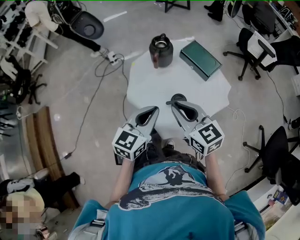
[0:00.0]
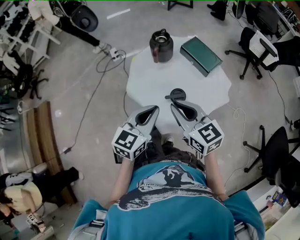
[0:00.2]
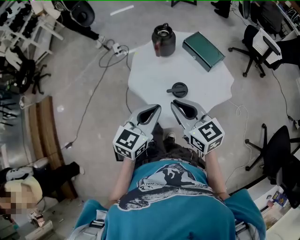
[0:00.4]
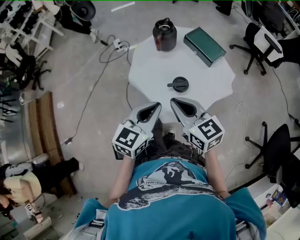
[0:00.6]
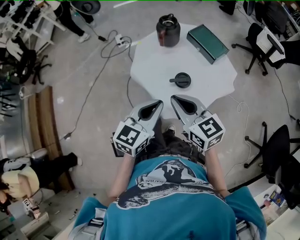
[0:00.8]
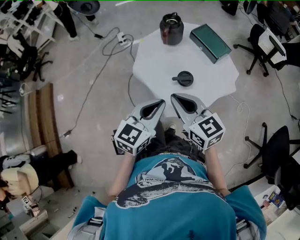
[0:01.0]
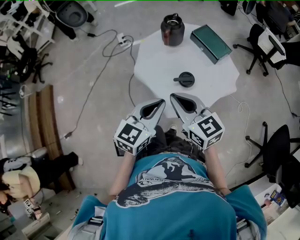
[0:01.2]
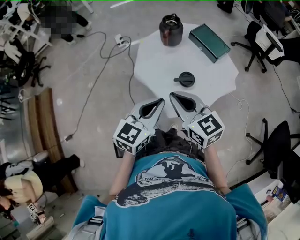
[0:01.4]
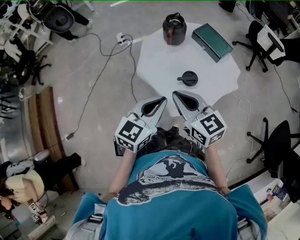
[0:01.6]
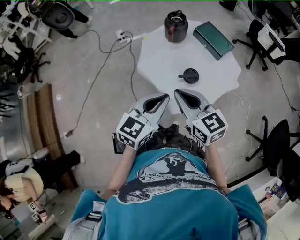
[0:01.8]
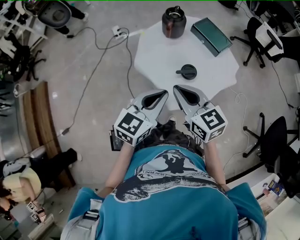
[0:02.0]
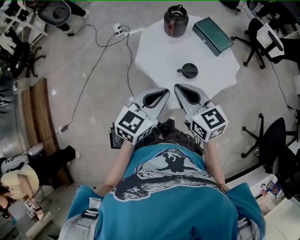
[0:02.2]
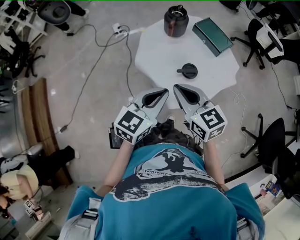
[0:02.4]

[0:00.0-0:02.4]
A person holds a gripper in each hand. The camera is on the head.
0:00.0 to 0:01.2: Both grippers move backward, roughly 10 cm.
0:01.2 to 0:02.4: The grippers make only small movements.

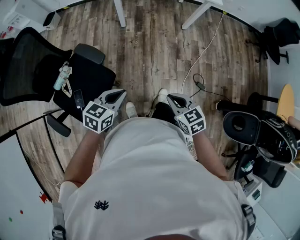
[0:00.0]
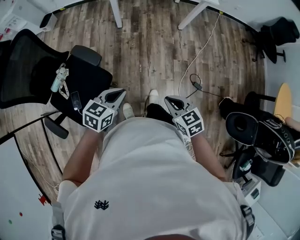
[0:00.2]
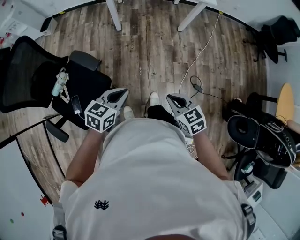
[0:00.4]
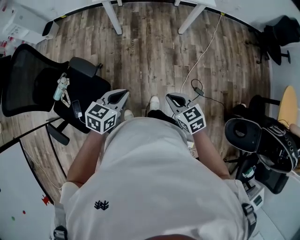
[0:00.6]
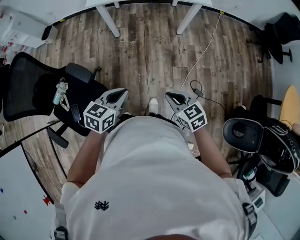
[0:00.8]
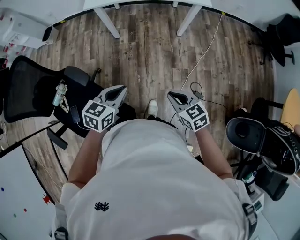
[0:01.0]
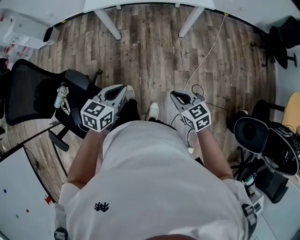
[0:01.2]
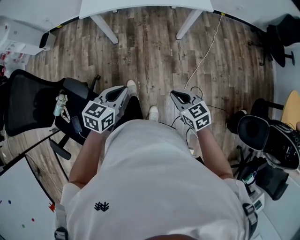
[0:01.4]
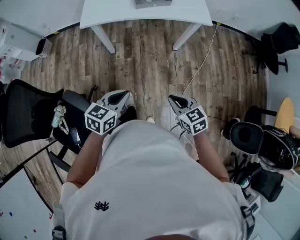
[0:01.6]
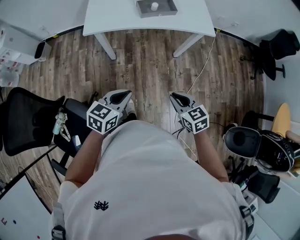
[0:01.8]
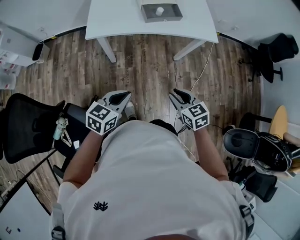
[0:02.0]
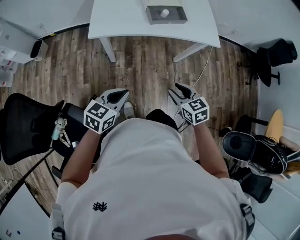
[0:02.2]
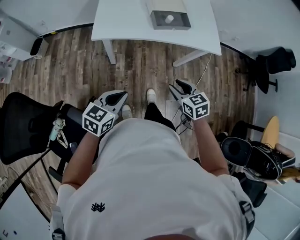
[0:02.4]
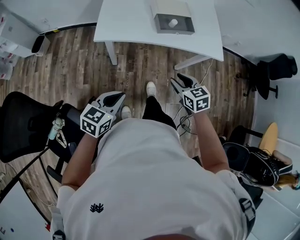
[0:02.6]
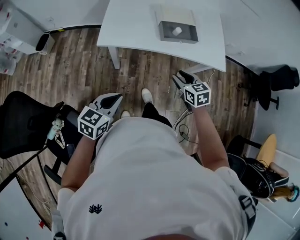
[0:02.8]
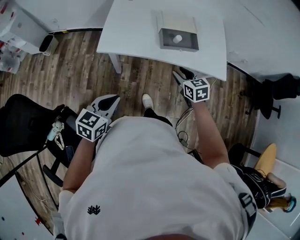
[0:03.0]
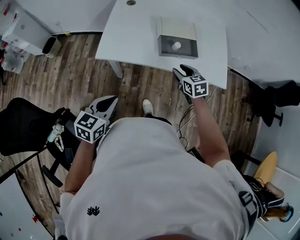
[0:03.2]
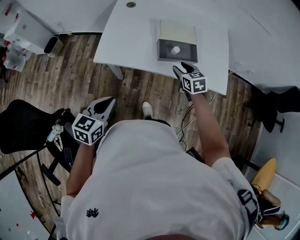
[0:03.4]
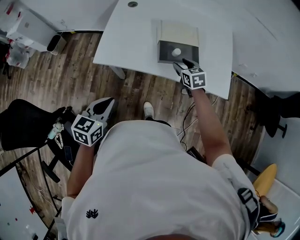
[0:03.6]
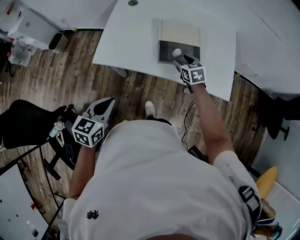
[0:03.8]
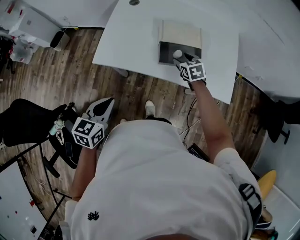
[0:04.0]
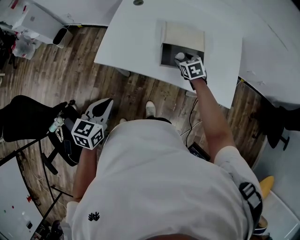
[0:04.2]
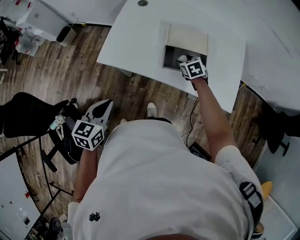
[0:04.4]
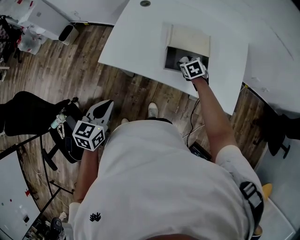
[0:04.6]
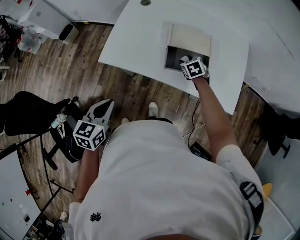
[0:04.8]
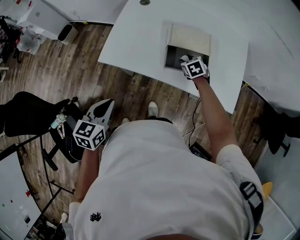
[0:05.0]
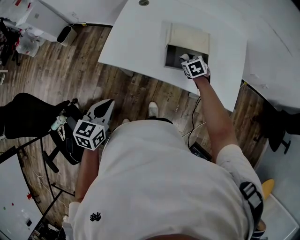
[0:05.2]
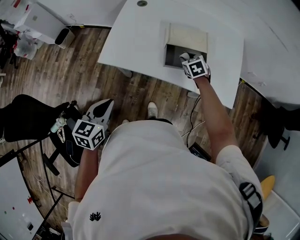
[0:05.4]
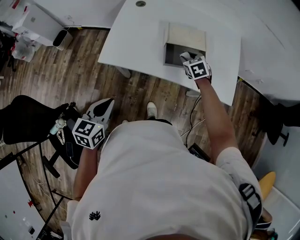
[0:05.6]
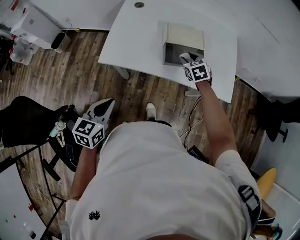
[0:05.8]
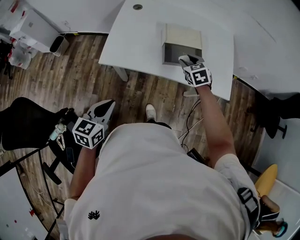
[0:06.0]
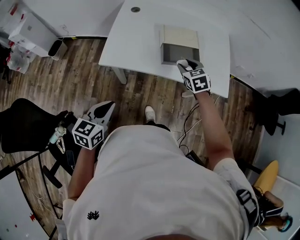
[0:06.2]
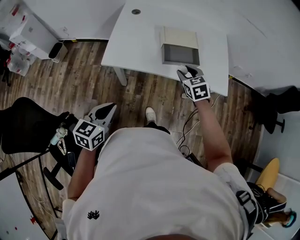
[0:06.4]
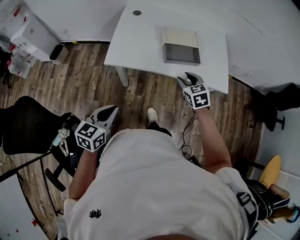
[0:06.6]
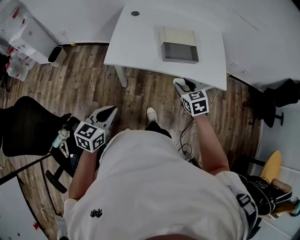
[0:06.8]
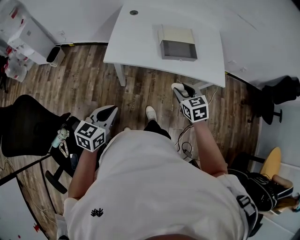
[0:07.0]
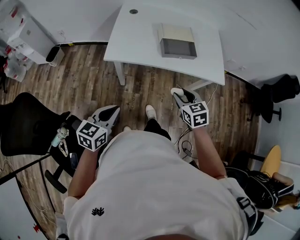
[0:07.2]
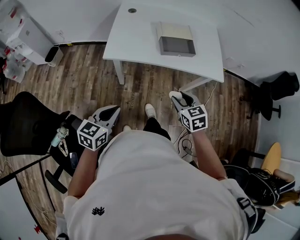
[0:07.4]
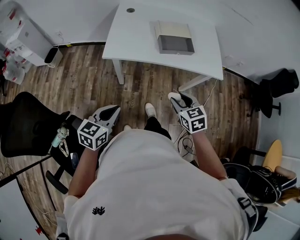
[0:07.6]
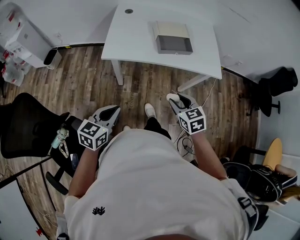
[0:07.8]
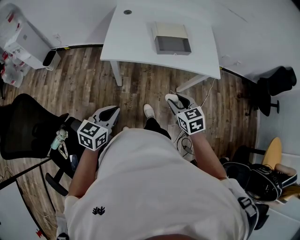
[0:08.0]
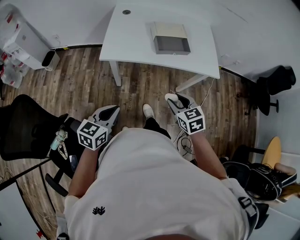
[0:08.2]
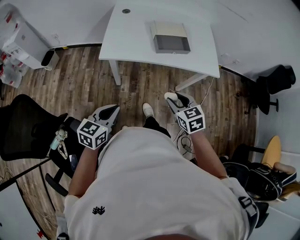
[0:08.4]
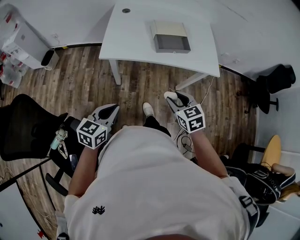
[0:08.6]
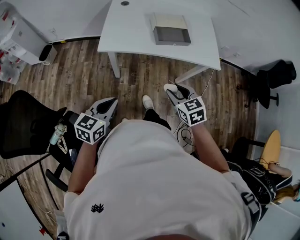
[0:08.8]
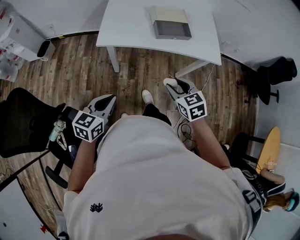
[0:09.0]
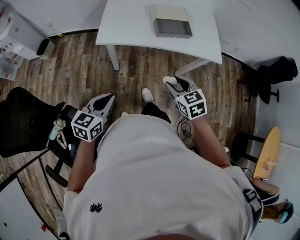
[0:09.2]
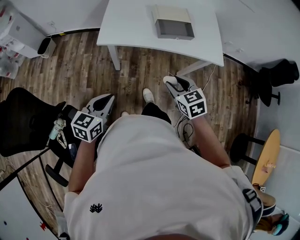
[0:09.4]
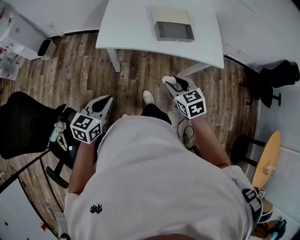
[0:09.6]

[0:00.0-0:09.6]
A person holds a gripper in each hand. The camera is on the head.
0:00.0 to 0:01.6: Both grippers move forward and to the right, roughly 25 cm.
0:01.6 to 0:03.2: The left gripper heads forward and to the left, covering some 25 cm. Meanwhile the right gripper travels forward by approximately 50 cm, and opens its fingers.
0:03.2 to 0:04.8: The right gripper moves forward and downward, some 20 cm, and swivels some 20 degrees. Meanwhile the left gripper goes about 5 cm forward, and swivels about 20 degrees.
0:04.8 to 0:06.4: The right gripper goes approximately 20 cm backward and upward; the left gripper goes roughly 5 cm backward.
0:06.4 to 0:08.0: The right gripper moves backward, about 25 cm. Meanwhile the left gripper shifts approximately 10 cm backward.
0:08.0 to 0:09.6: The grippers make only small movements.

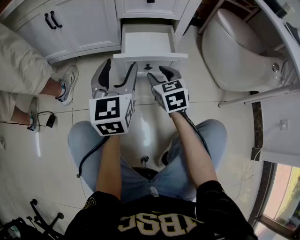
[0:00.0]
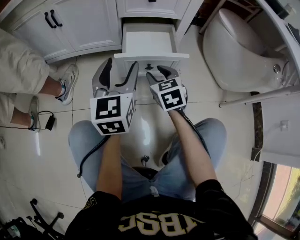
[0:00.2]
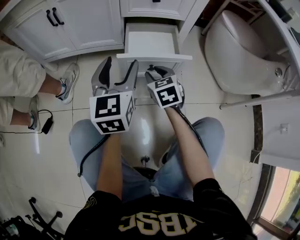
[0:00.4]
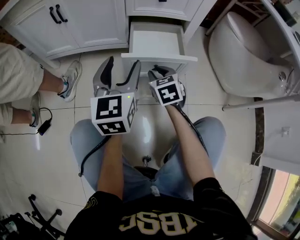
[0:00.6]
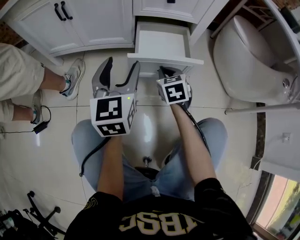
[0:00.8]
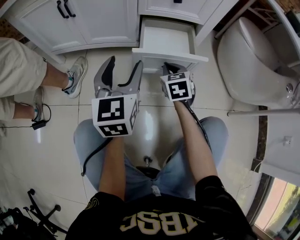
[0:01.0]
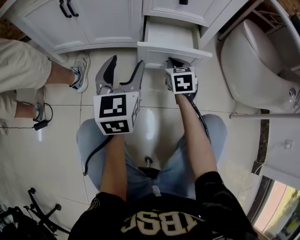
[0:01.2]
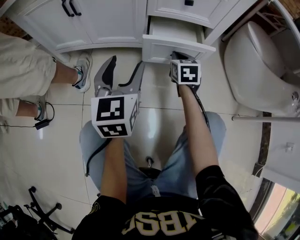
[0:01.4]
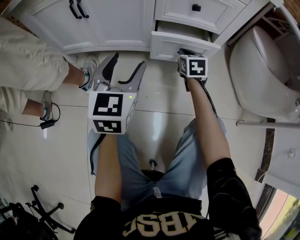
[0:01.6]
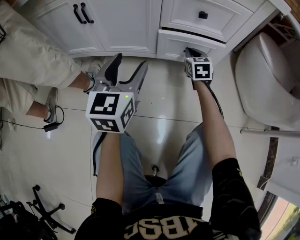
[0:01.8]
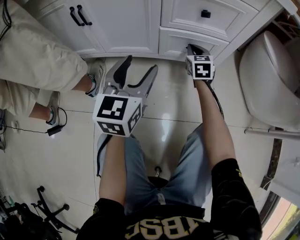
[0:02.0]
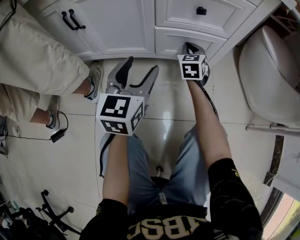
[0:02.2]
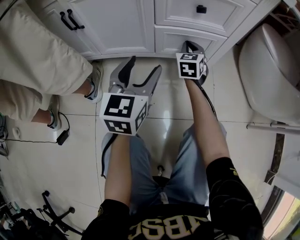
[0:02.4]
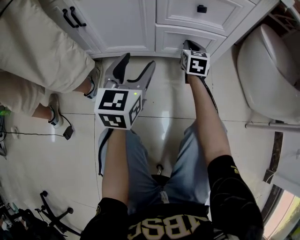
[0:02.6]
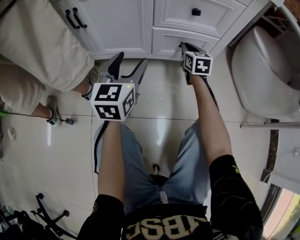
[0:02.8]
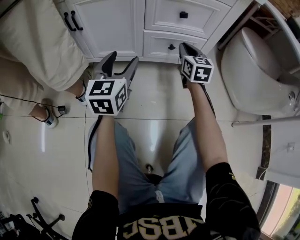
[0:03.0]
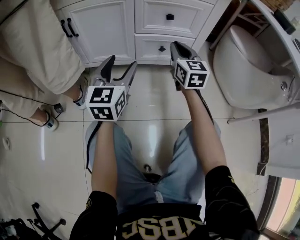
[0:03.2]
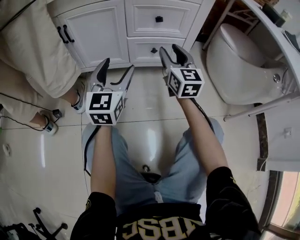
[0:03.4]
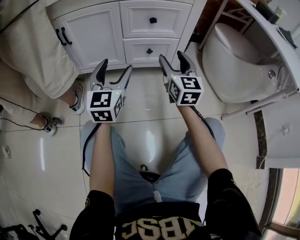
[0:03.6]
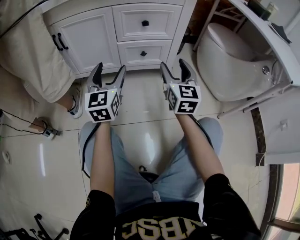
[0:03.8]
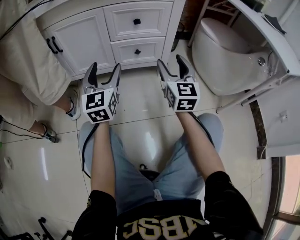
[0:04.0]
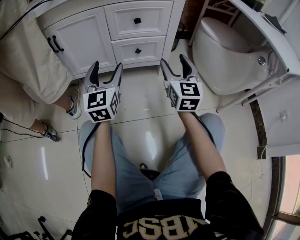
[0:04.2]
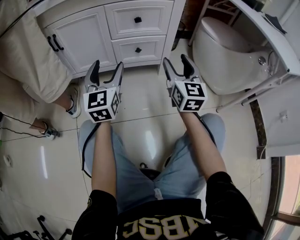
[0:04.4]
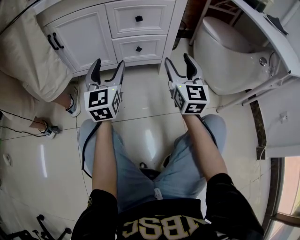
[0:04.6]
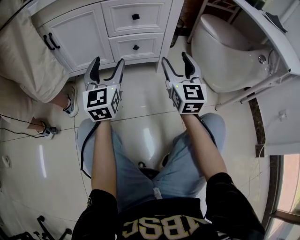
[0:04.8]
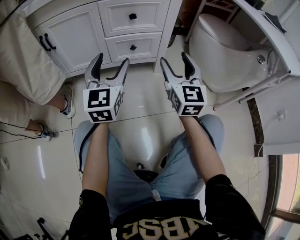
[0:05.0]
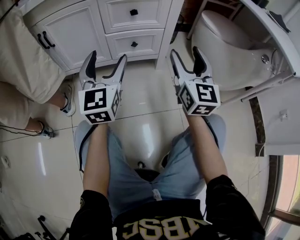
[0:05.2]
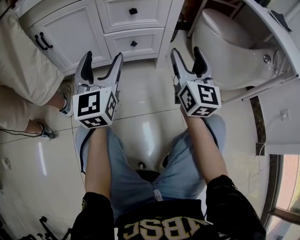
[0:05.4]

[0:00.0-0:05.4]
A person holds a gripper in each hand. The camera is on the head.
0:00.0 to 0:01.4: The right gripper shifts roughly 15 cm forward, and closes its fingers, while the left gripper heads to the left and forward, covering some 10 cm.
0:01.4 to 0:02.8: The right gripper shifts roughly 10 cm forward. Meanwhile the left gripper moves forward, roughly 5 cm.
0:02.8 to 0:04.0: The left gripper moves backward, upward and to the right, some 10 cm. The right gripper heads backward and upward, covering roughly 30 cm, rotates about 30 degrees, and opens its fingers.
0:04.0 to 0:05.4: The right gripper changes place by some 5 cm.

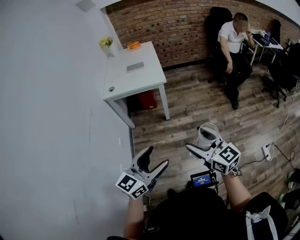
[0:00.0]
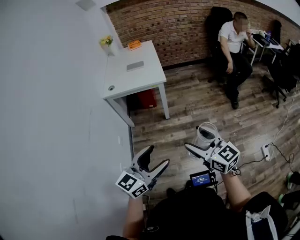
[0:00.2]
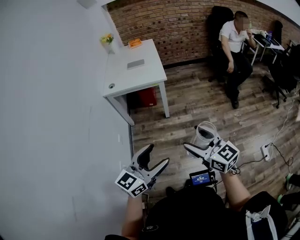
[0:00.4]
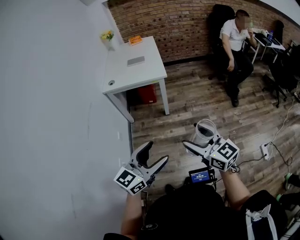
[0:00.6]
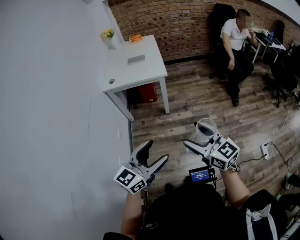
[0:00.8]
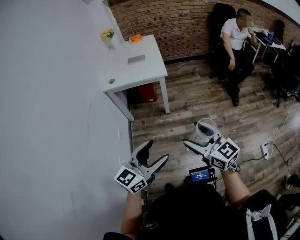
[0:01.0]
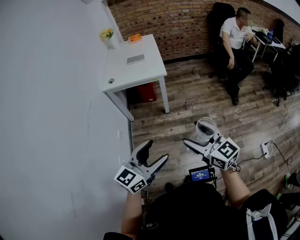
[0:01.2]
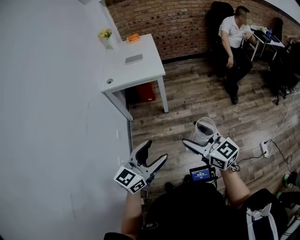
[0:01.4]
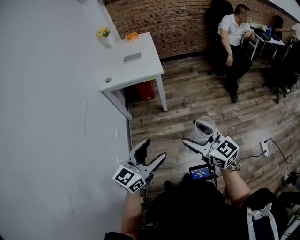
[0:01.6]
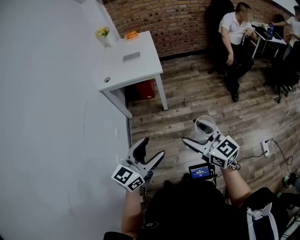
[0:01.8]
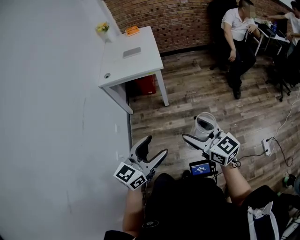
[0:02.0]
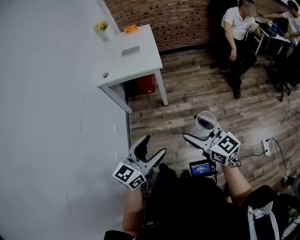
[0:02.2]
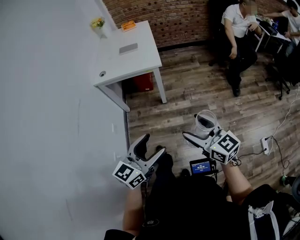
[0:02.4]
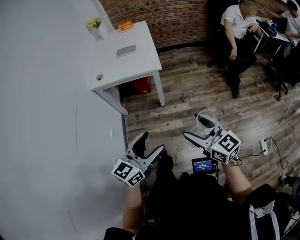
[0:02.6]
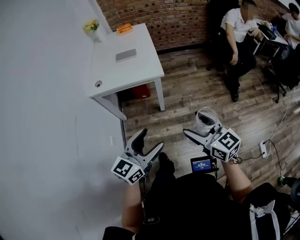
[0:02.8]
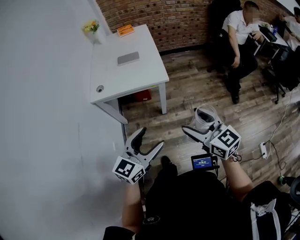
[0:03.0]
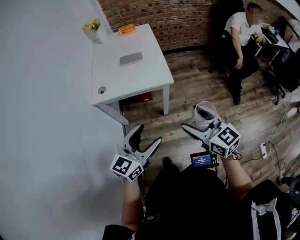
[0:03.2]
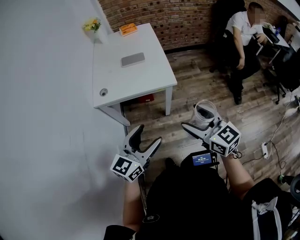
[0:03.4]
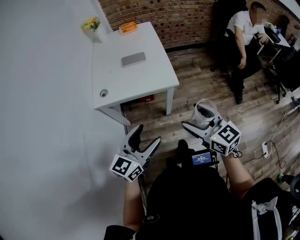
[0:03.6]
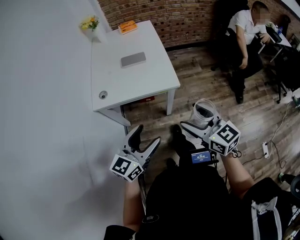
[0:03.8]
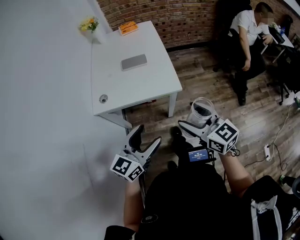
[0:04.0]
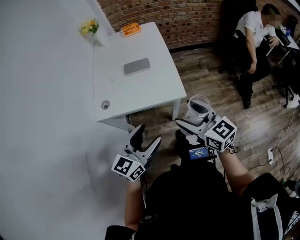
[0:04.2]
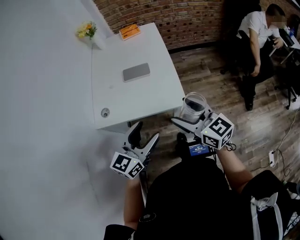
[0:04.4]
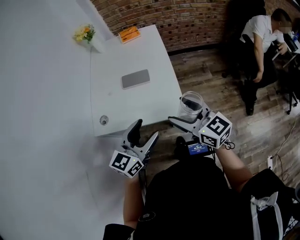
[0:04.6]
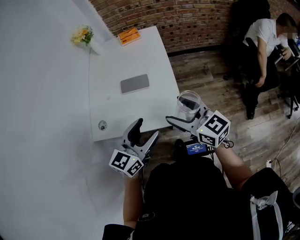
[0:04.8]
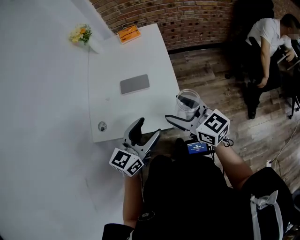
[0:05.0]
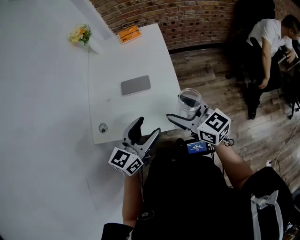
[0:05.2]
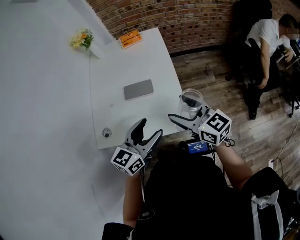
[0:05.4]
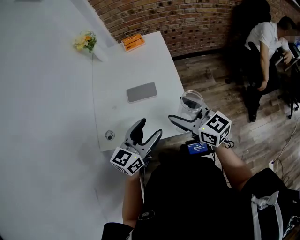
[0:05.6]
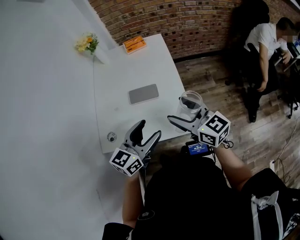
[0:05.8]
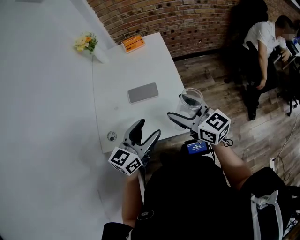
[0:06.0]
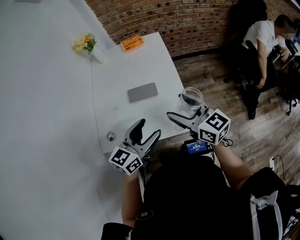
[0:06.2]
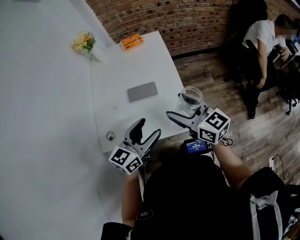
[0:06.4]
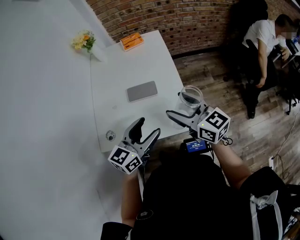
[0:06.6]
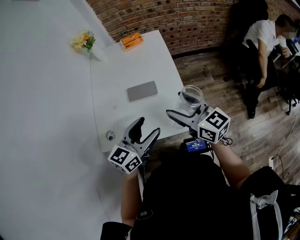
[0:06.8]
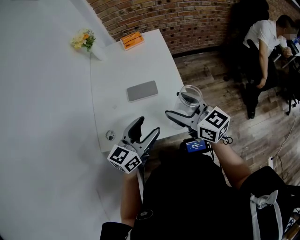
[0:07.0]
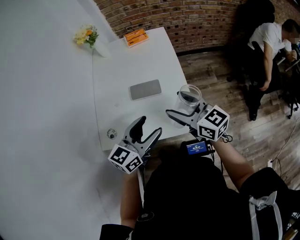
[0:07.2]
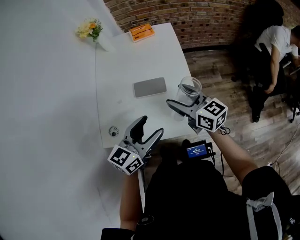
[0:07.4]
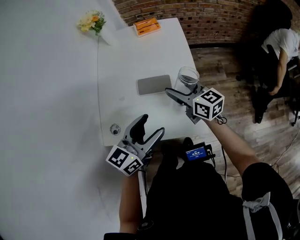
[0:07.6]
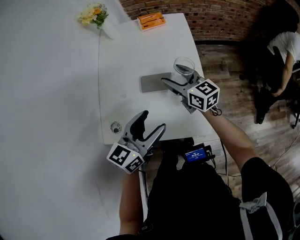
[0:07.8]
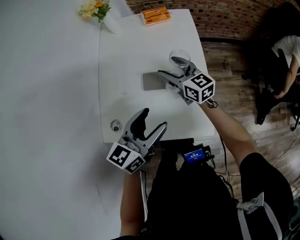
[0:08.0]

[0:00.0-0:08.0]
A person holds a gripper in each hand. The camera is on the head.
0:00.0 to 0:01.6: The grippers move only a little.
0:01.6 to 0:03.2: The grippers both shift forward by some 30 cm.
0:03.2 to 0:04.8: The grippers both shift forward by approximately 35 cm.
0:04.8 to 0:06.4: The grippers both shift forward by some 5 cm.
0:06.4 to 0:08.0: The left gripper moves forward, approximately 5 cm; the right gripper is displaced forward, downward and to the left by about 25 cm.
